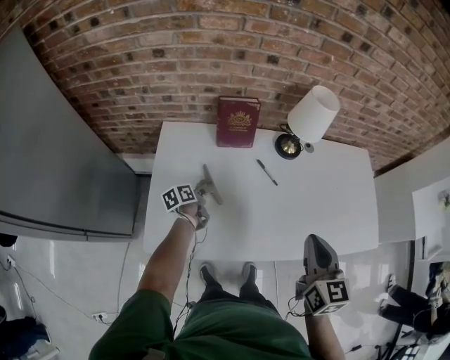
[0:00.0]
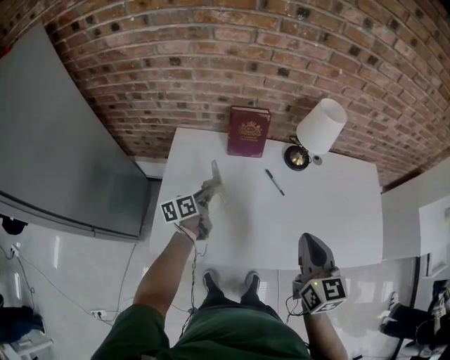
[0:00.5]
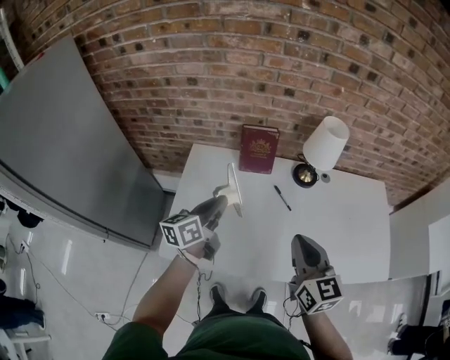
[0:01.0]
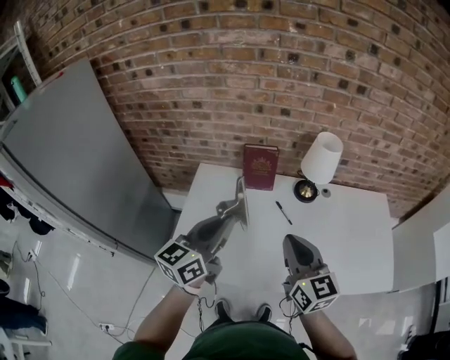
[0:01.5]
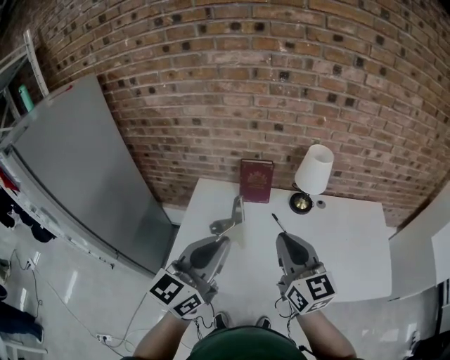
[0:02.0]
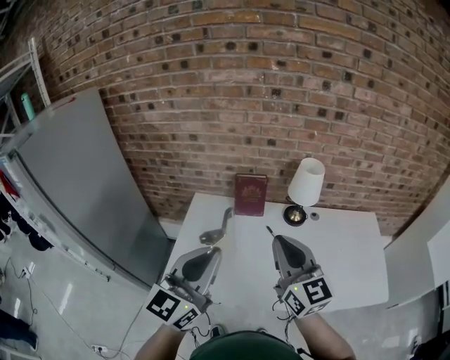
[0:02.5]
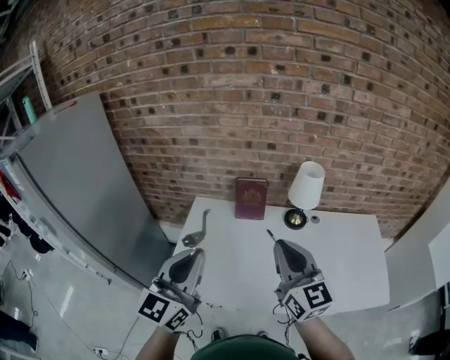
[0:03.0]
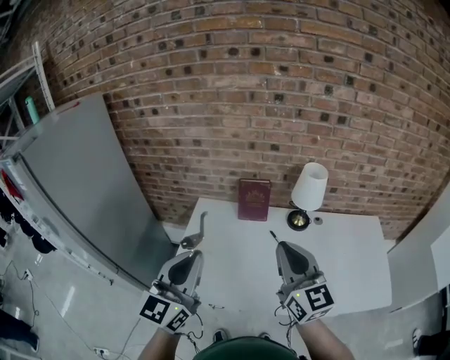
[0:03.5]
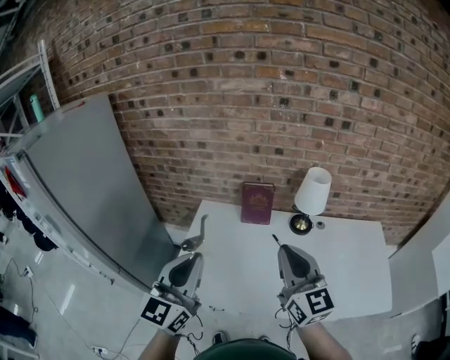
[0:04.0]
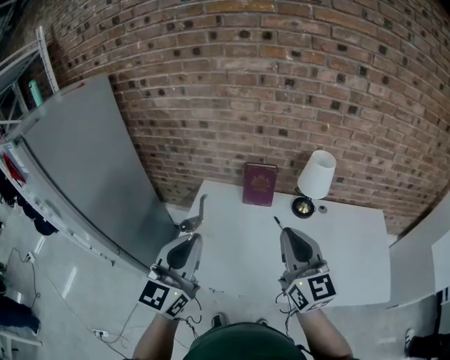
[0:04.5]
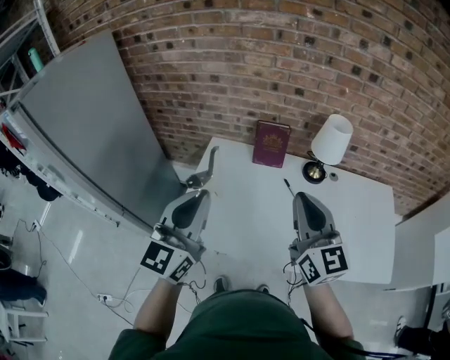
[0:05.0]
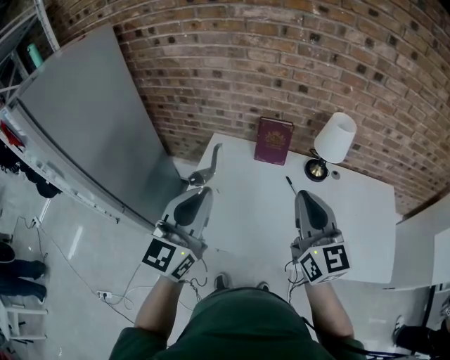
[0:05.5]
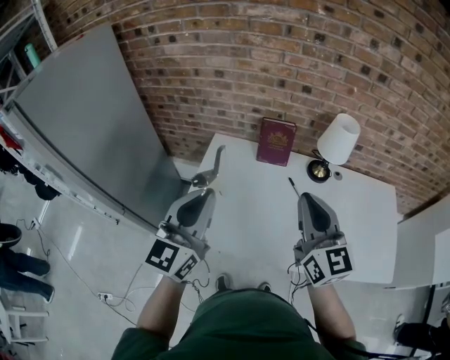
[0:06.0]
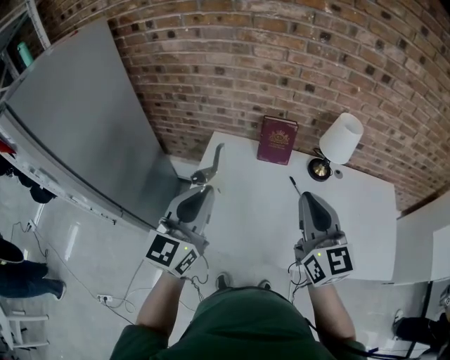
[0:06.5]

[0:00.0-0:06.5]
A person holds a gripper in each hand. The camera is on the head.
0:00.0 to 0:02.0: The left gripper is displaced upward and backward by roughly 50 cm, and tips its fingers upward by roughly 40 degrees. Meanwhile the right gripper moves upward and to the left, approximately 15 cm, and turns by about 30 degrees.
0:02.0 to 0:04.5: The left gripper moves to the left, some 5 cm, and turns by some 20 degrees.
0:04.5 to 0:06.5: The right gripper ends up approximately 5 cm from where it was. Meanwhile the left gripper goes about 5 cm forward.

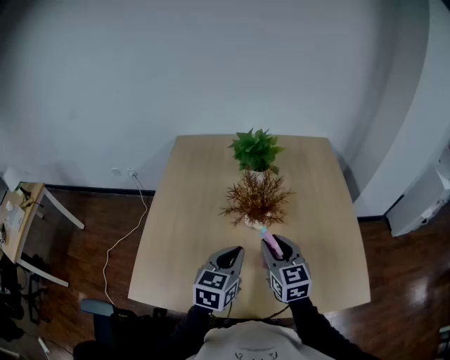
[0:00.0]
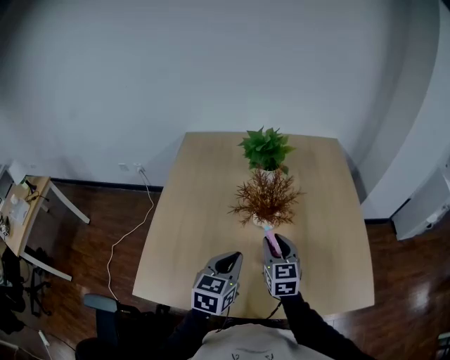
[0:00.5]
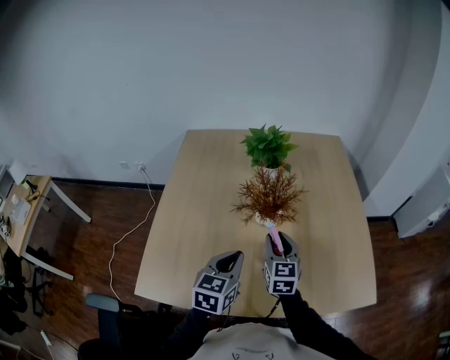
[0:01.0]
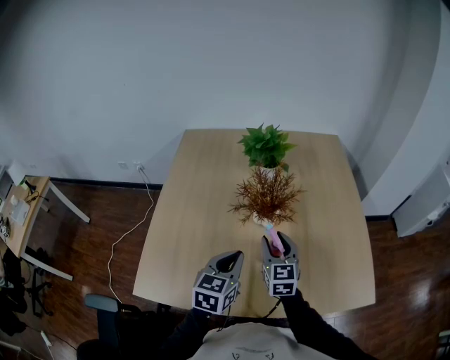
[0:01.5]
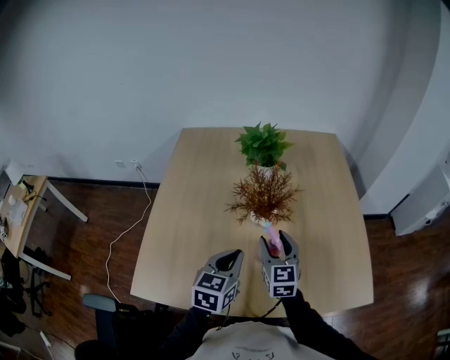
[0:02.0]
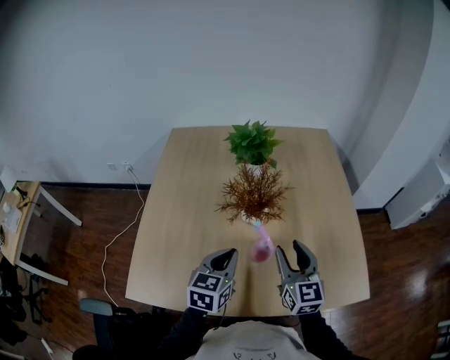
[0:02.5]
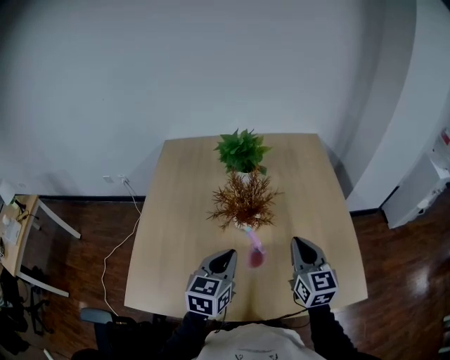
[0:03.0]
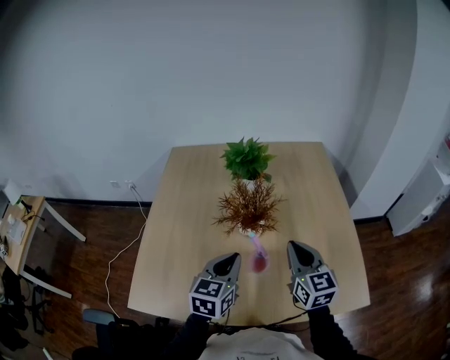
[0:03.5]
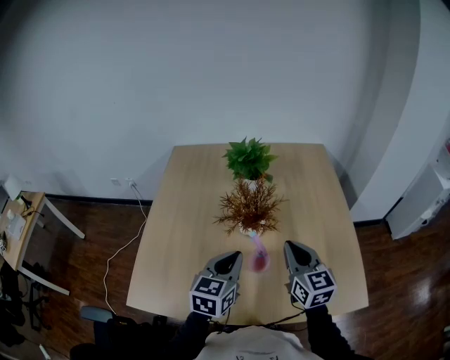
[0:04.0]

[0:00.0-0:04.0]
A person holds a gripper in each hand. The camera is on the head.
0:00.0 to 0:02.0: The right gripper ends up roughly 5 cm from where it was, and opens up.
0:02.0 to 0:04.0: The right gripper is displaced to the right and upward by approximately 15 cm, and closes its fingers, while the left gripper moves about 5 cm.

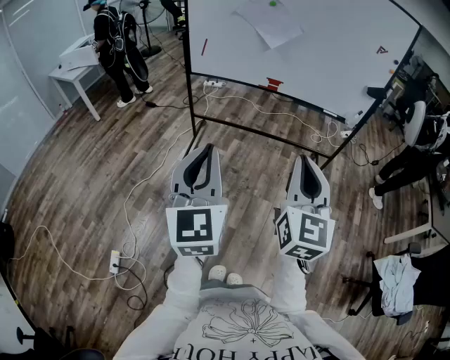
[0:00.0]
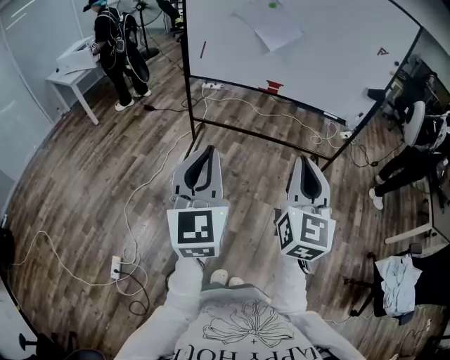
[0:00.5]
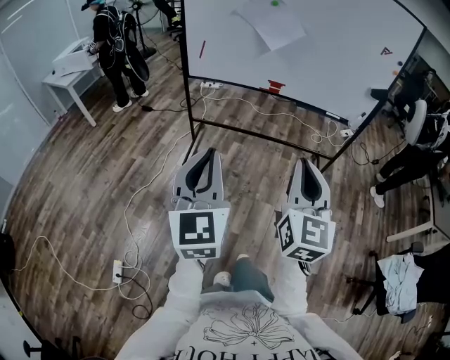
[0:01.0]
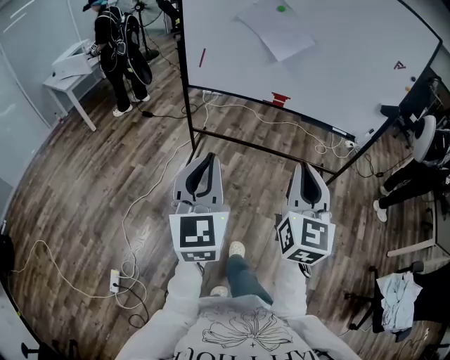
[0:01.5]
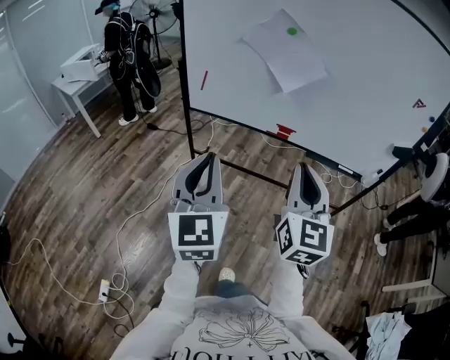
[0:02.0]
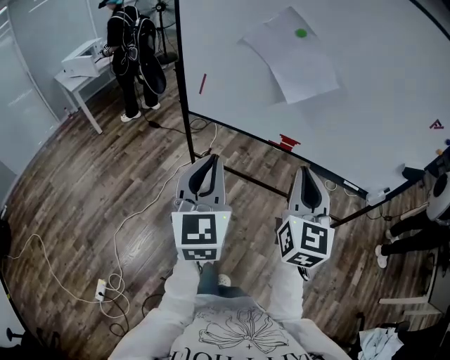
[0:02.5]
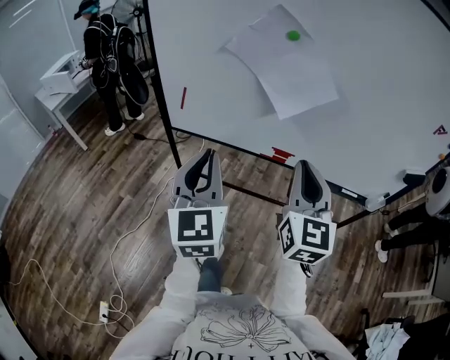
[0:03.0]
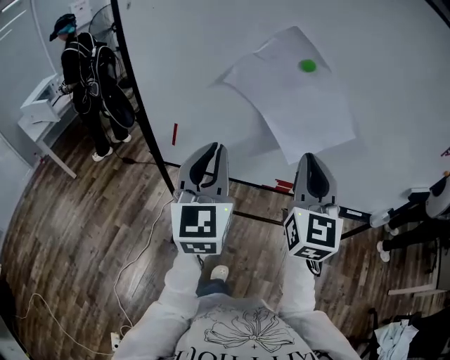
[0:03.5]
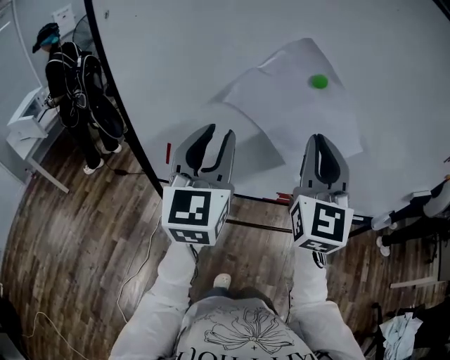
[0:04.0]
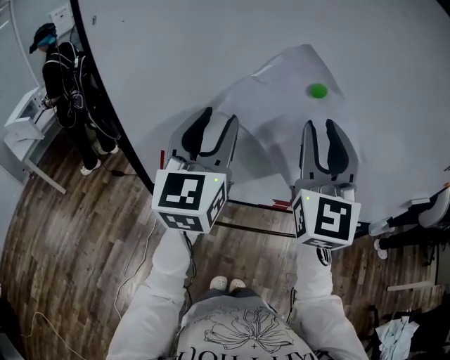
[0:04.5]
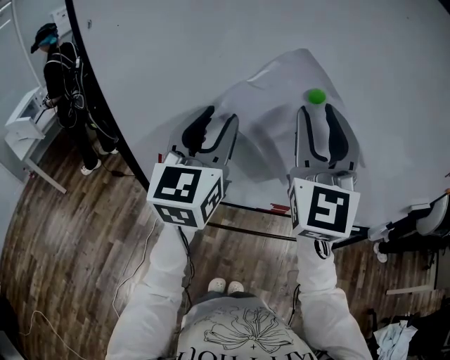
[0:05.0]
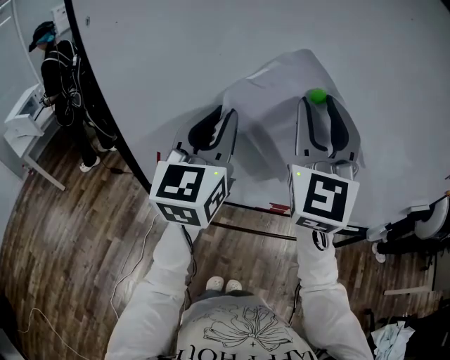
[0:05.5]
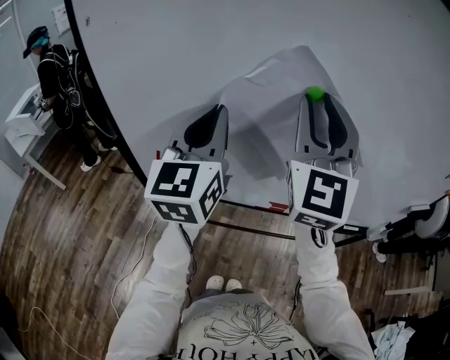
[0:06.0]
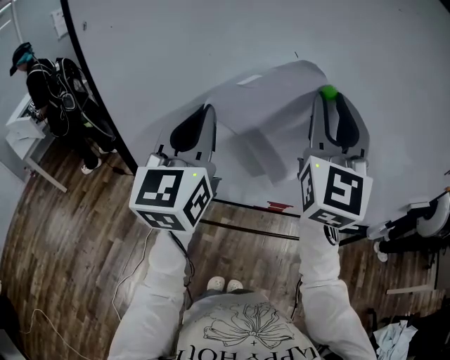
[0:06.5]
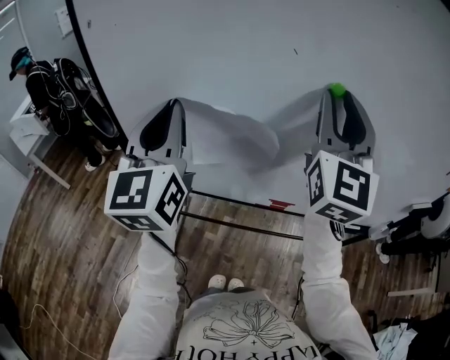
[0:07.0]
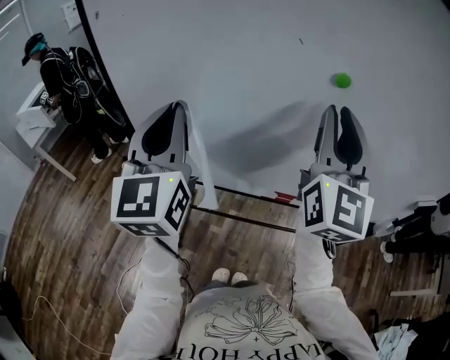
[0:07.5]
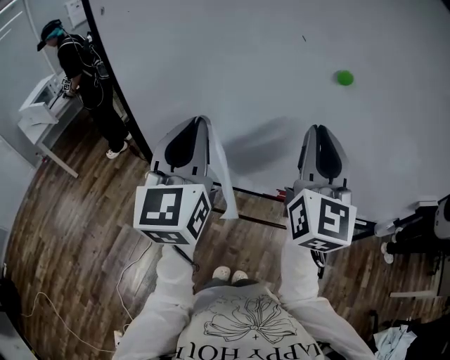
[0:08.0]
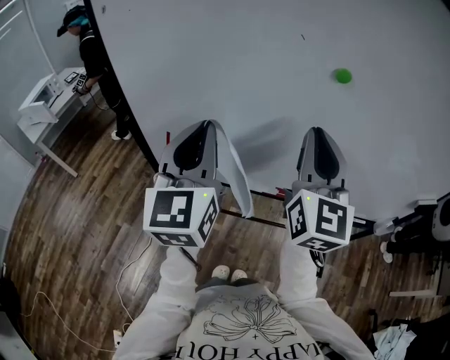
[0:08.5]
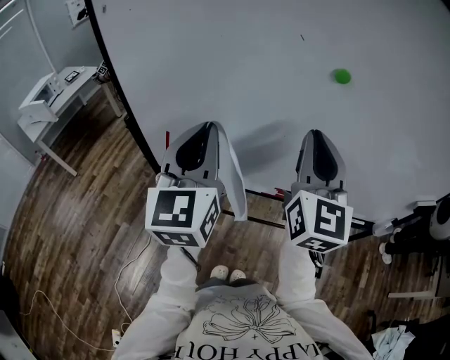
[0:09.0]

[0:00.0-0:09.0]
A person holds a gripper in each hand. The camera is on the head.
0:00.0 to 0:02.0: The two grippers go roughly 35 cm forward.
0:02.0 to 0:04.5: The pair of grippers is taken forward, roughly 50 cm. The left gripper swivels some 20 degrees, and opens. The right gripper rotates approximately 20 degrees, and opens up.
0:04.5 to 0:07.0: The right gripper moves upward, roughly 5 cm; the left gripper heads to the left, covering some 5 cm, and closes its fingers.
0:07.0 to 0:09.0: The right gripper travels downward and backward by approximately 10 cm, and closes. Meanwhile the left gripper shifts some 10 cm downward and to the right.

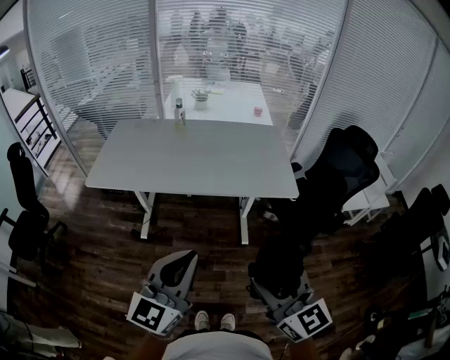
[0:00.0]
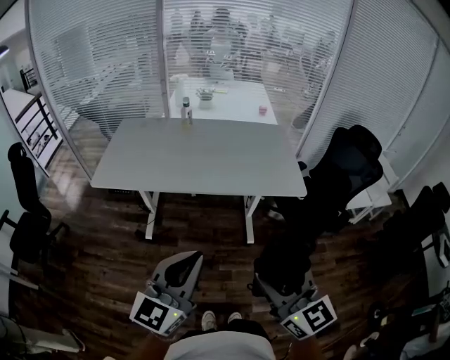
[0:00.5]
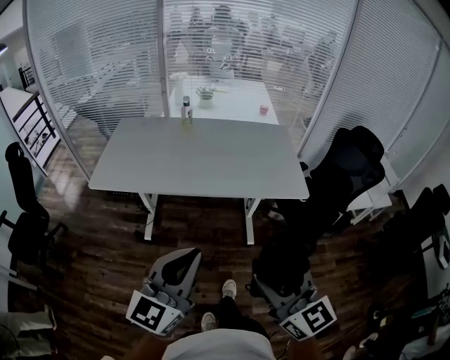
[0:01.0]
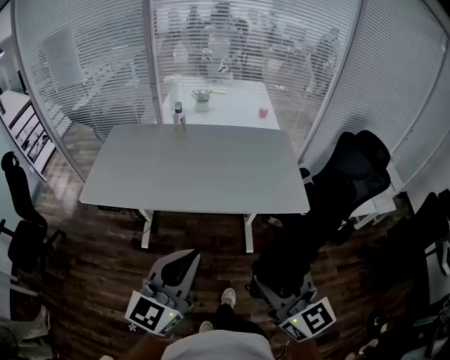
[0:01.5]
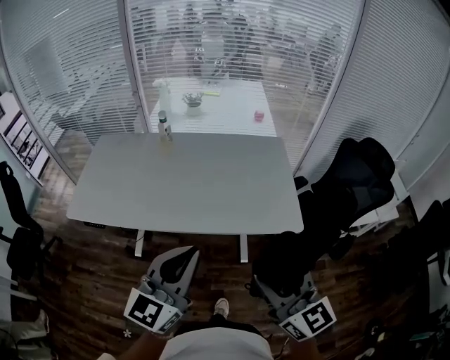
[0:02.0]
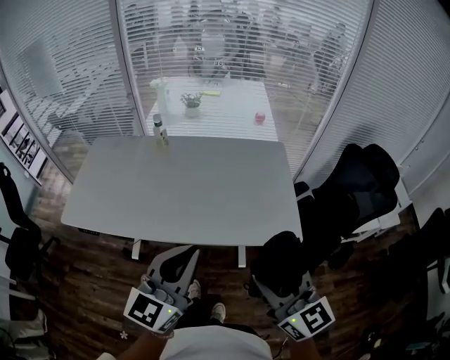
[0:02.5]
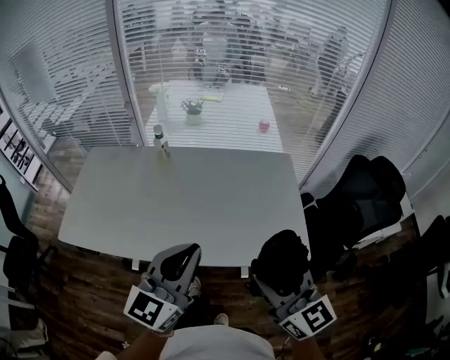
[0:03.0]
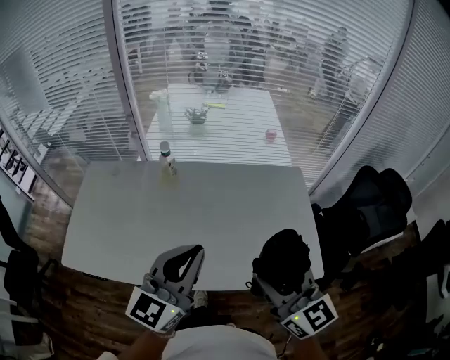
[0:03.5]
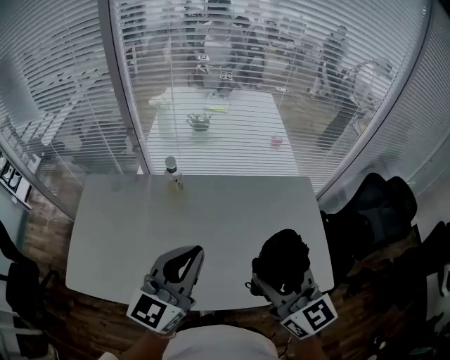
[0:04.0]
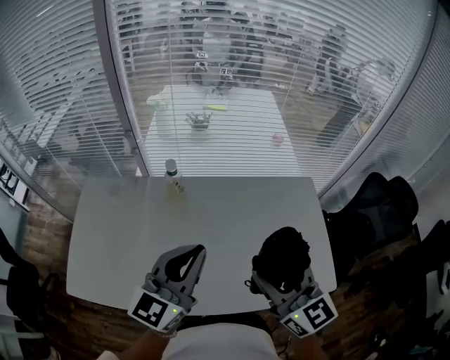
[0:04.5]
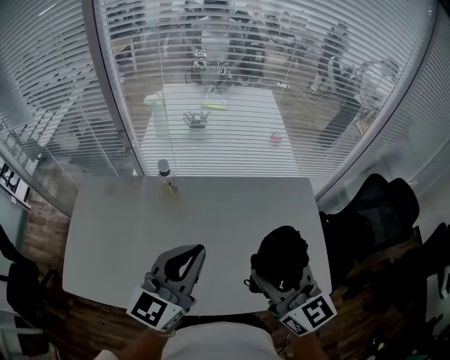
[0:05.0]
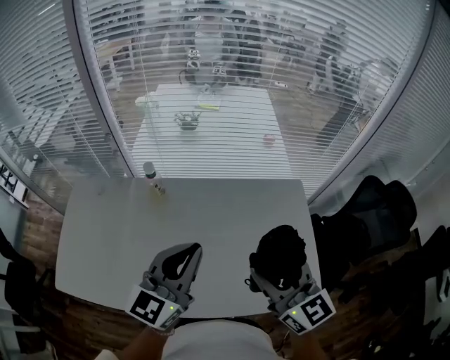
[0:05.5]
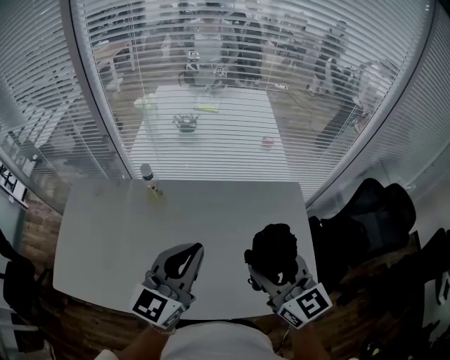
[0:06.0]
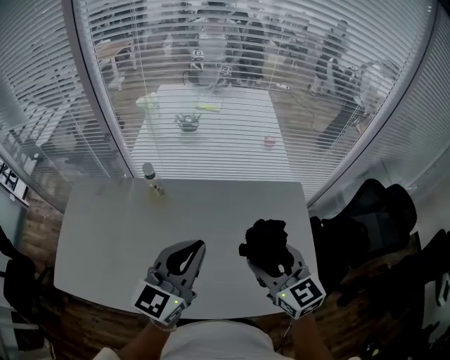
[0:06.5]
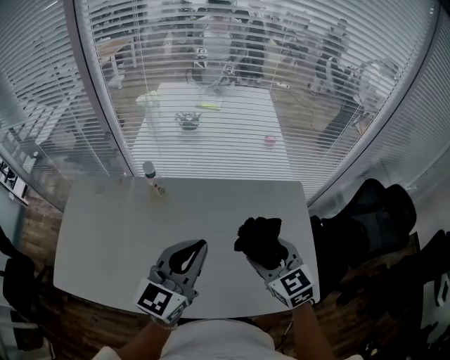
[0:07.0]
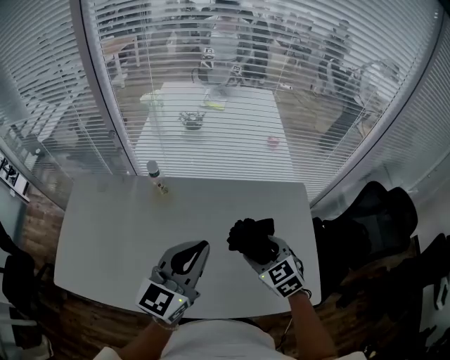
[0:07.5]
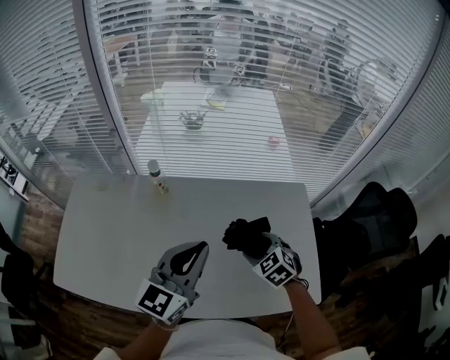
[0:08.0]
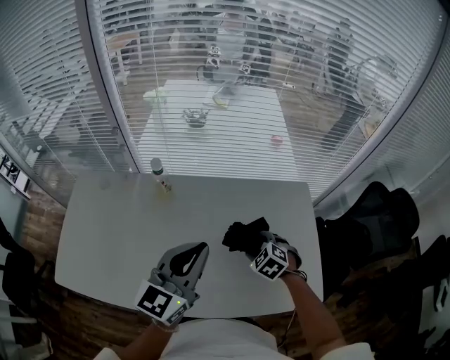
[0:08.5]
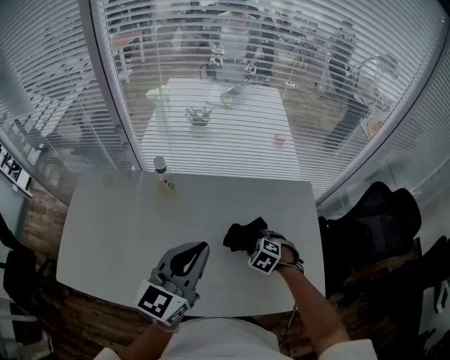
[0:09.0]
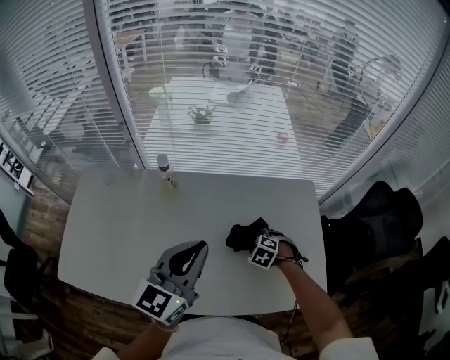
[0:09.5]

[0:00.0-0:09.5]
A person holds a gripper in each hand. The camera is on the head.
0:00.0 to 0:02.0: Both grippers travel together forward, roughly 25 cm.
0:02.0 to 0:04.0: The left gripper shifts roughly 35 cm forward. The right gripper moves forward and to the left, some 35 cm.
0:04.0 to 0:05.5: Both grippers move to the right and forward, roughly 10 cm.
0:05.5 to 0:07.5: The right gripper heads downward and forward, covering roughly 15 cm, and points its fingers roughly 30 degrees further downward.
0:07.5 to 0:09.5: The right gripper is displaced downward by some 15 cm, and points its fingers approximately 30 degrees further downward.
